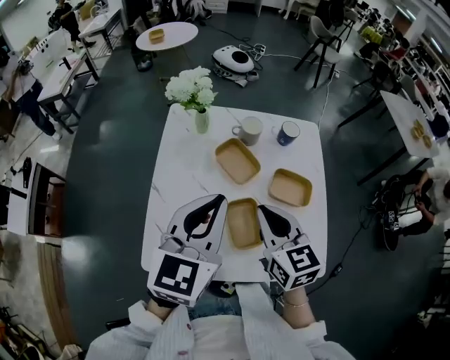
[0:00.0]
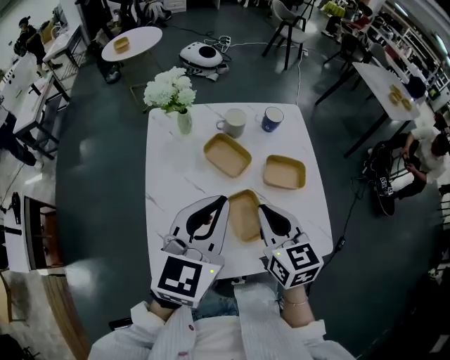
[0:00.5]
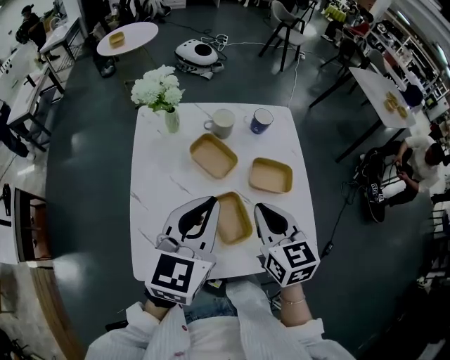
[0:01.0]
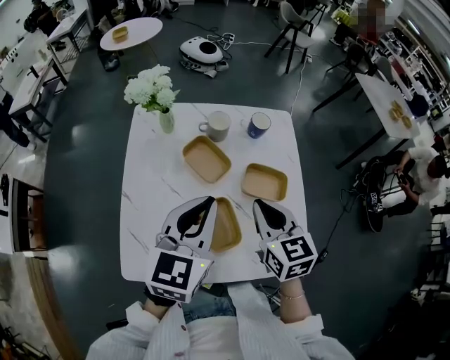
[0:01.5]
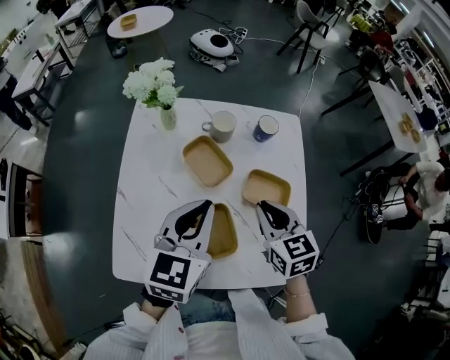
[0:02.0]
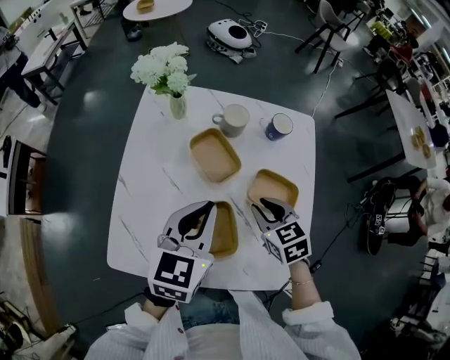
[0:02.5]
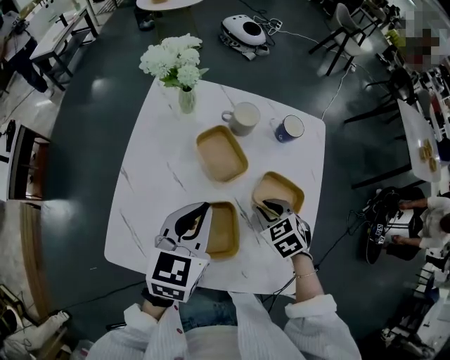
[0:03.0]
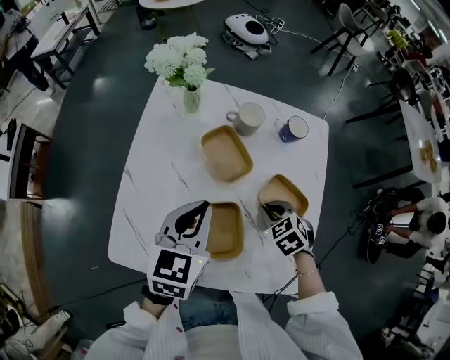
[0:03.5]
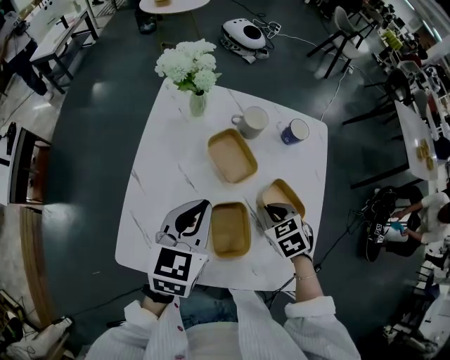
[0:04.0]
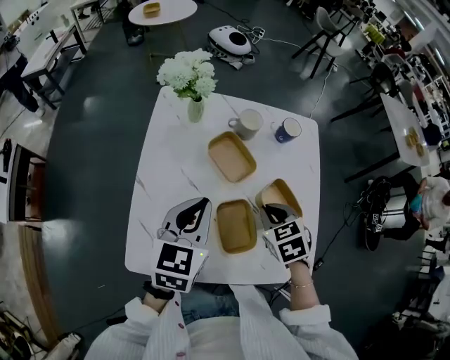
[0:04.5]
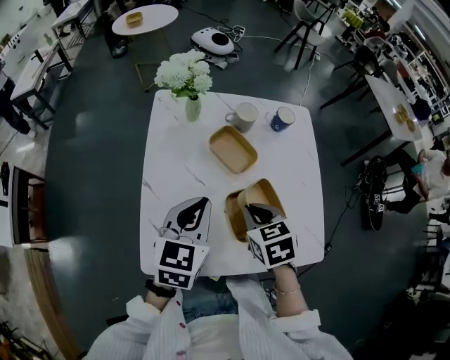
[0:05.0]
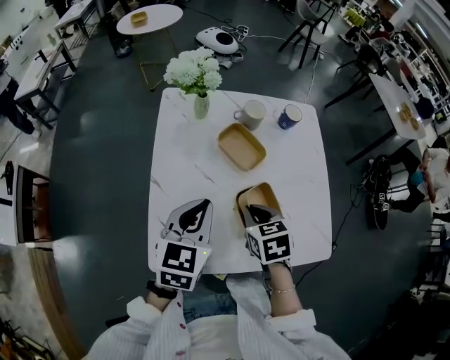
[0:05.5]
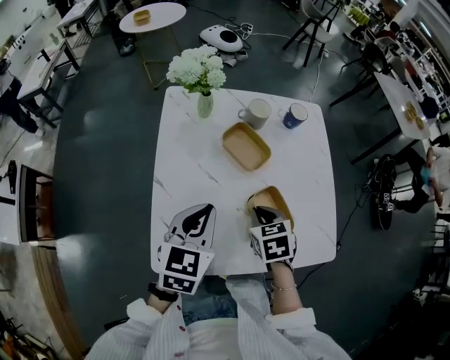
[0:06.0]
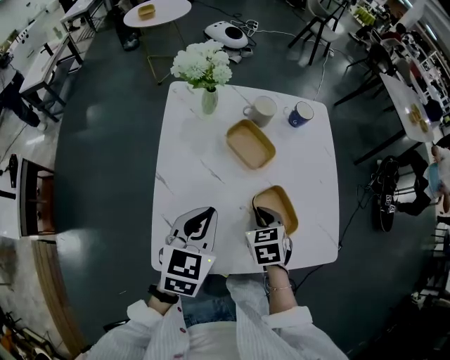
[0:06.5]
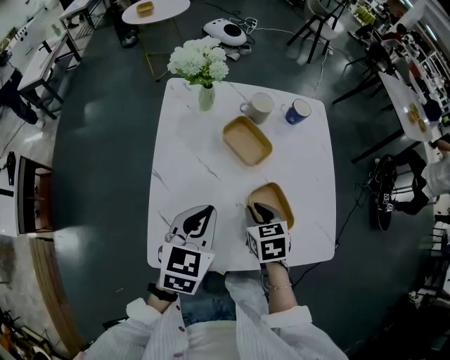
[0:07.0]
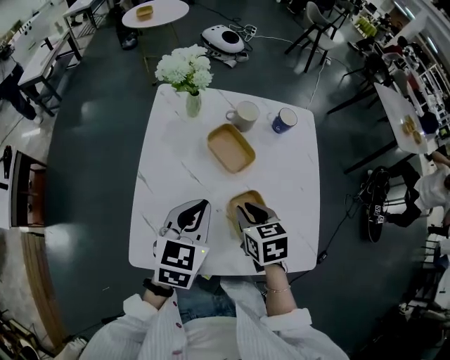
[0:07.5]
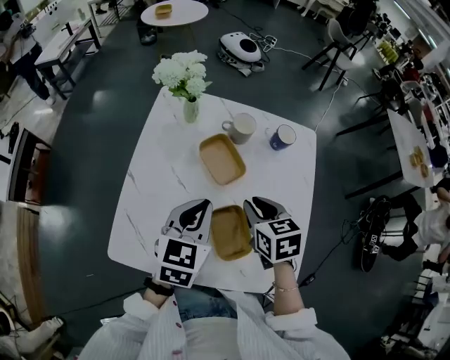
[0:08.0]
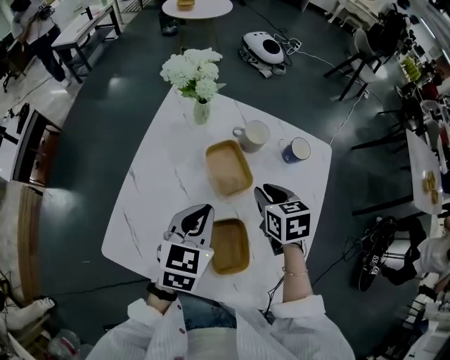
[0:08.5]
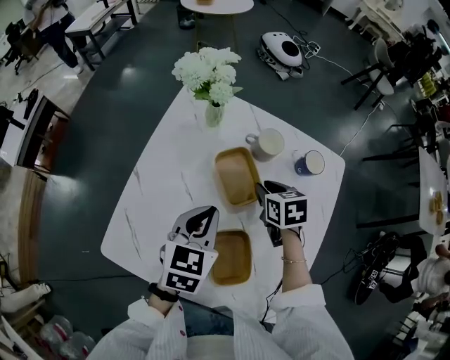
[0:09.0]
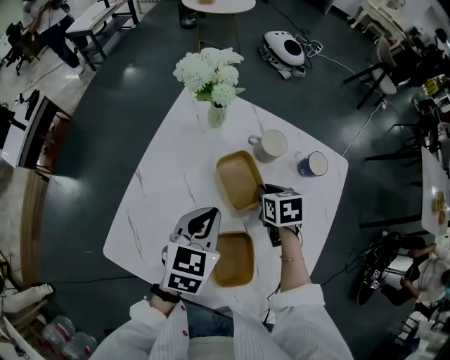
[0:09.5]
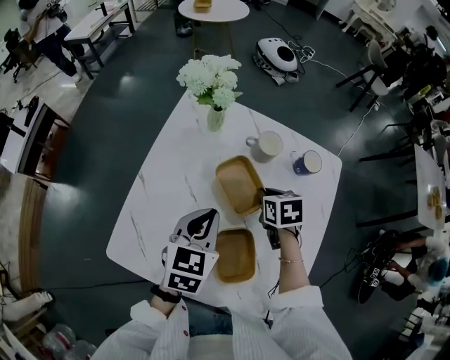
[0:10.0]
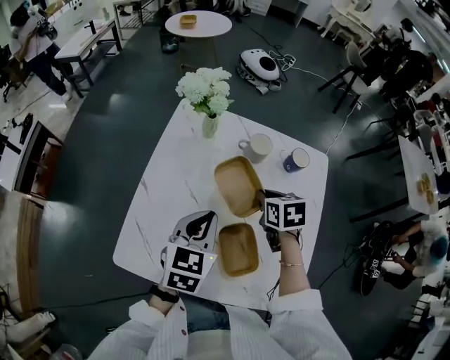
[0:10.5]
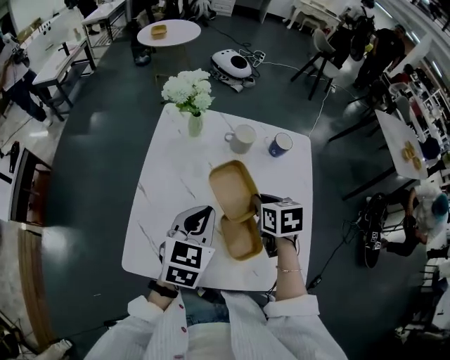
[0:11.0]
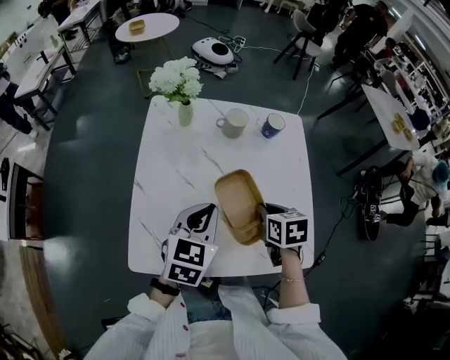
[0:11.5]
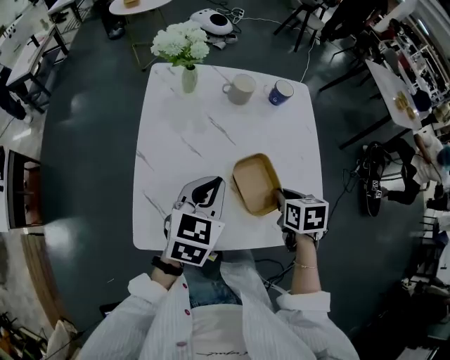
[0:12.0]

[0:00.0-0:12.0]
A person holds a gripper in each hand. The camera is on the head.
0.0 to 2.0 s: The right gripper shifts approximately 15 cm to the right, downward and forward. The left gripper shifts about 10 cm downward, to the right and forward.
2.0 to 4.0 s: The left gripper moves downward and to the left, some 10 cm, while the right gripper travels downward by some 15 cm, and swivels some 40 degrees.
4.0 to 6.0 s: The left gripper shifts approximately 10 cm to the left and backward; the right gripper heads to the left and backward, covering roughly 15 cm, and swivels some 30 degrees.
6.0 to 8.0 s: The left gripper heads to the right and forward, covering approximately 10 cm. Meanwhile the right gripper heads forward, to the right and upward, covering approximately 10 cm.
8.0 to 10.0 s: The right gripper heads forward and downward, covering roughly 15 cm. The left gripper changes place by some 5 cm.
10.0 to 12.0 s: The left gripper shifts by about 10 cm, and rotates some 20 degrees. Meanwhile the right gripper ends up roughly 25 cm from where it was, and changes its angle by about 30 degrees.

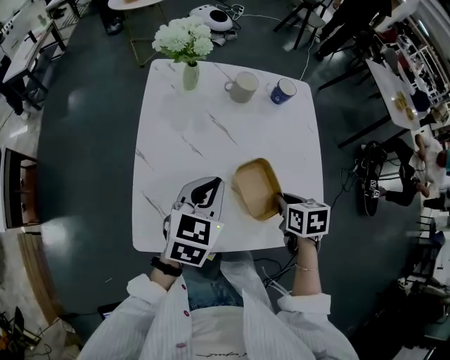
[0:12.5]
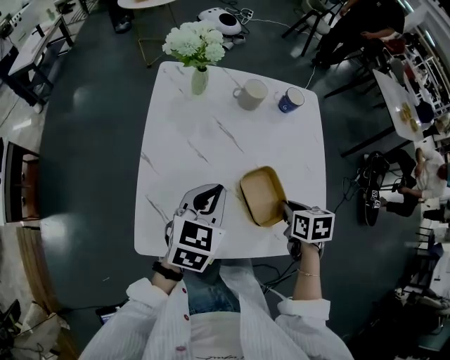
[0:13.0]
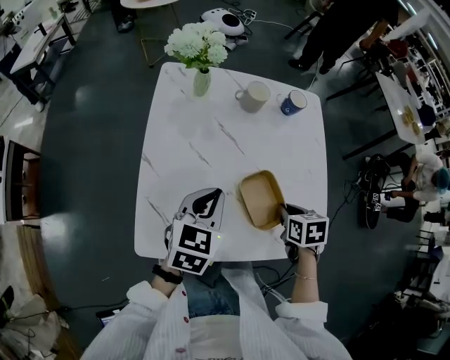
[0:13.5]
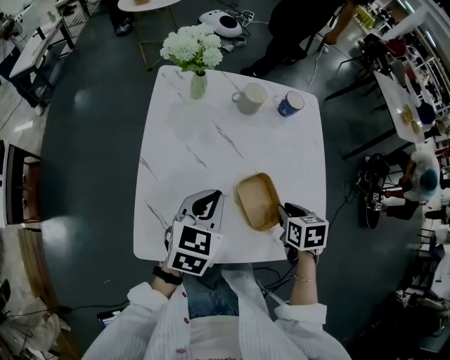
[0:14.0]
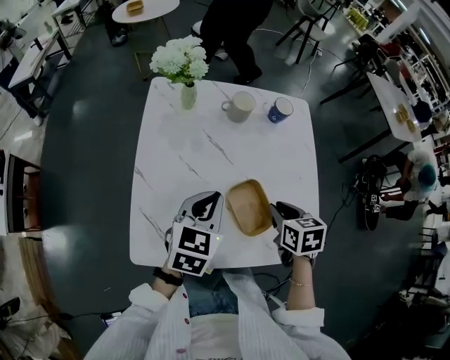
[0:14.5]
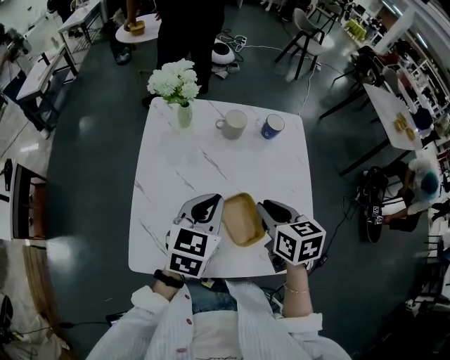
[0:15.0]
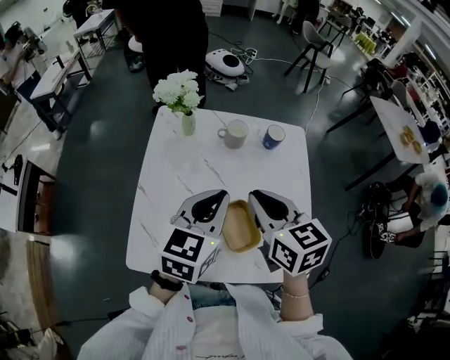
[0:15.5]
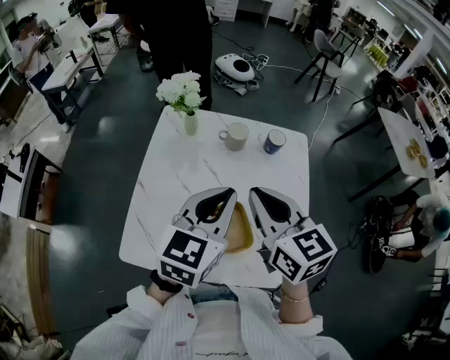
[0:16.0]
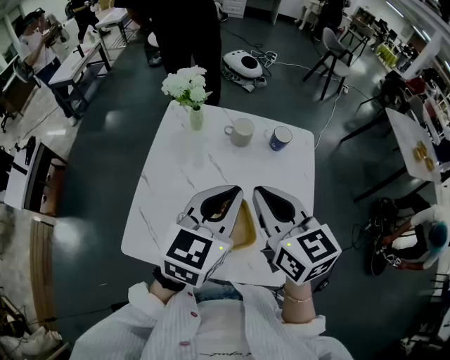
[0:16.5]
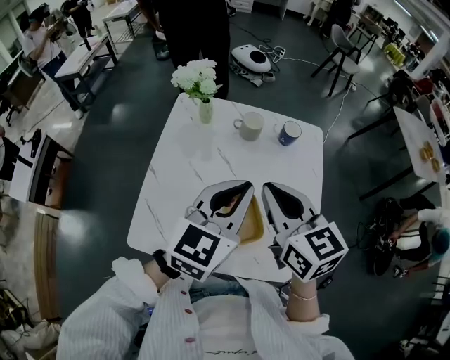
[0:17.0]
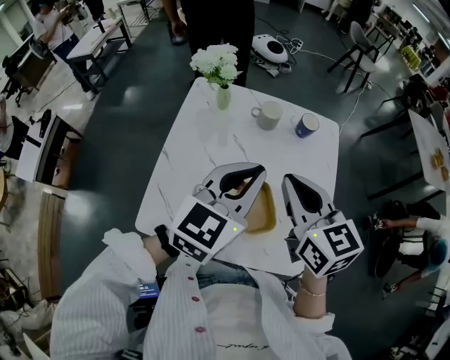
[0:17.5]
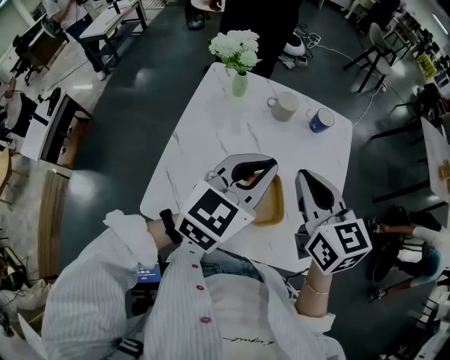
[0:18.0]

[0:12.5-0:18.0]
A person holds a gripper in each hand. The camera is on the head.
12.5 to 14.5 s: There are only small adjustments of the grippers.
14.5 to 16.0 s: The right gripper travels upward by about 20 cm, and angles its fingers upward, by roughly 40 degrees. The left gripper shifts approximately 15 cm upward and to the right.
16.0 to 18.0 s: The grippers stay close to where they were, moving slightly.

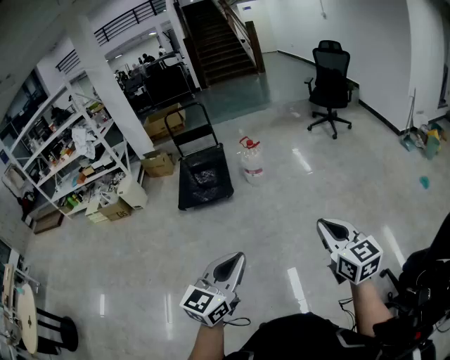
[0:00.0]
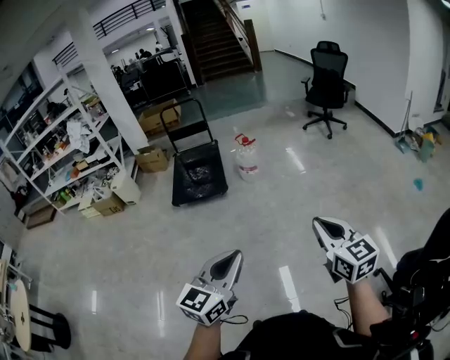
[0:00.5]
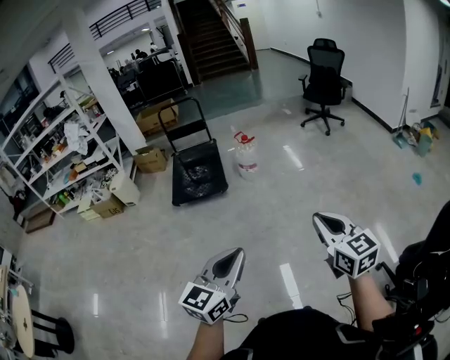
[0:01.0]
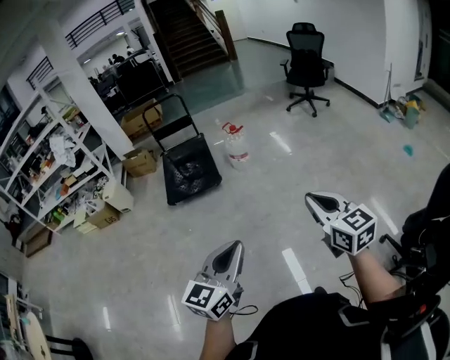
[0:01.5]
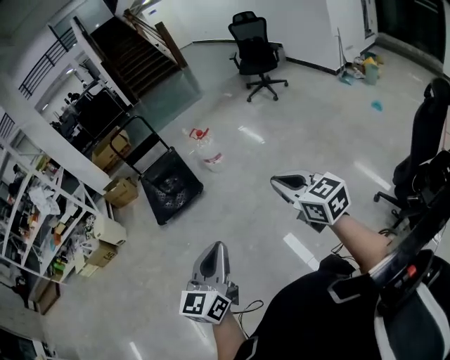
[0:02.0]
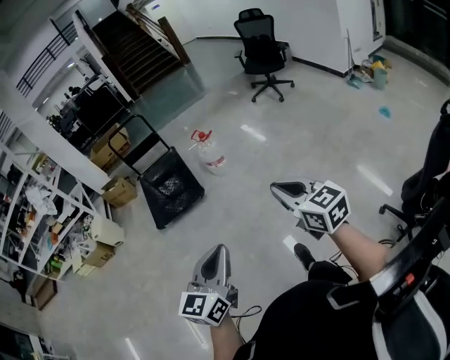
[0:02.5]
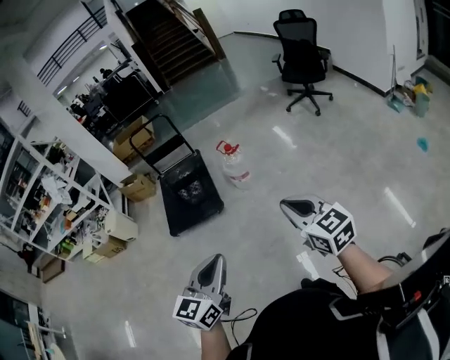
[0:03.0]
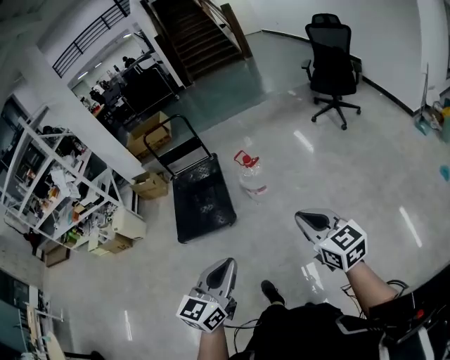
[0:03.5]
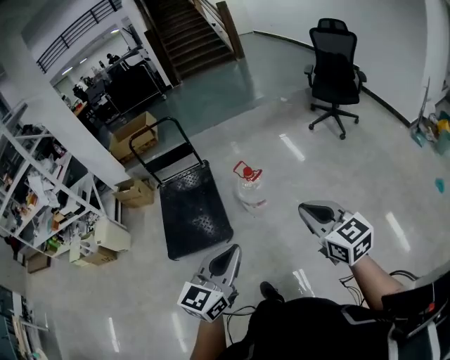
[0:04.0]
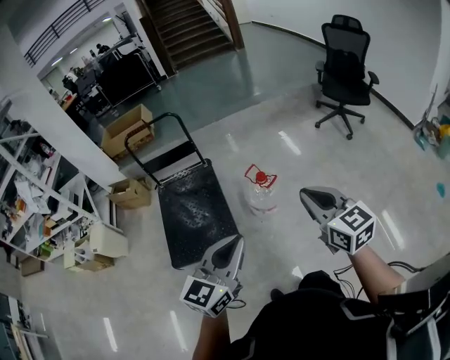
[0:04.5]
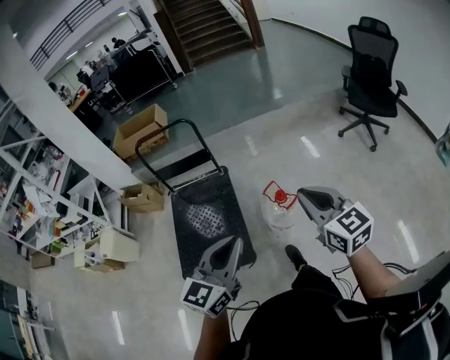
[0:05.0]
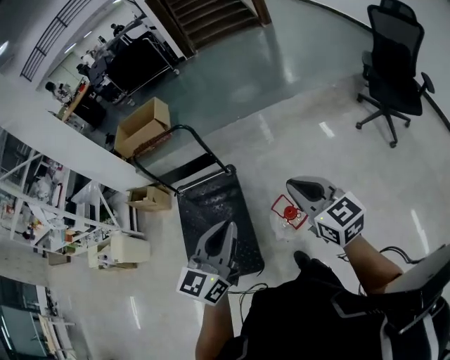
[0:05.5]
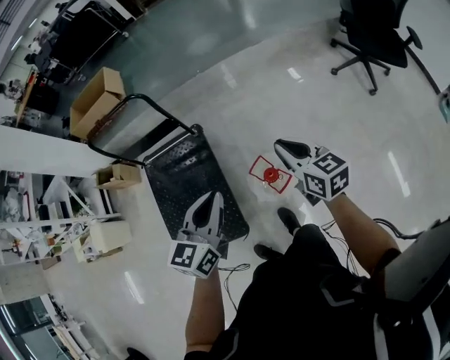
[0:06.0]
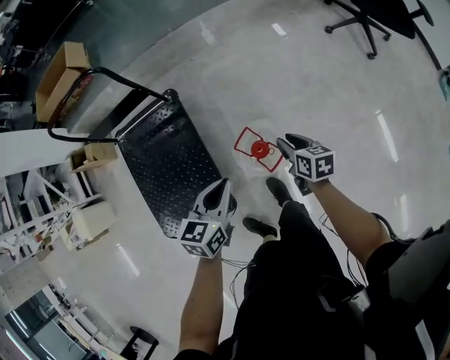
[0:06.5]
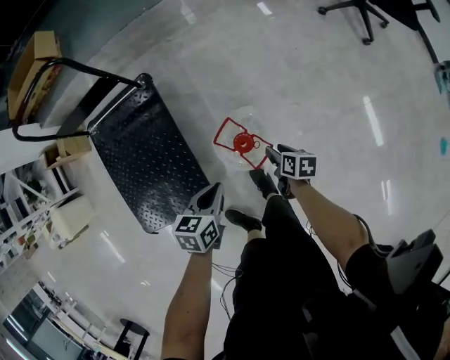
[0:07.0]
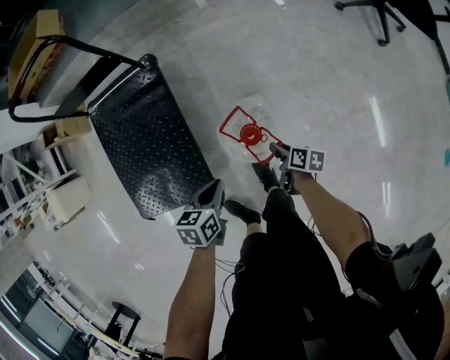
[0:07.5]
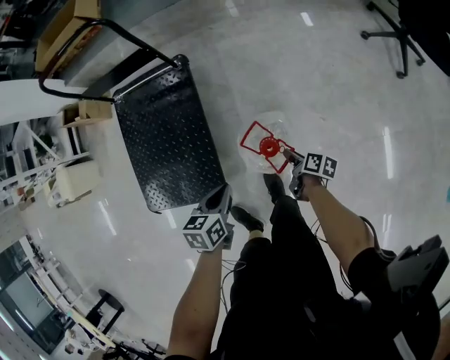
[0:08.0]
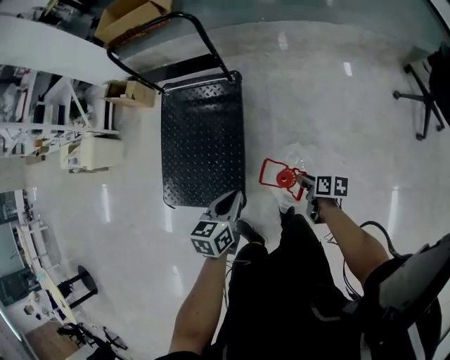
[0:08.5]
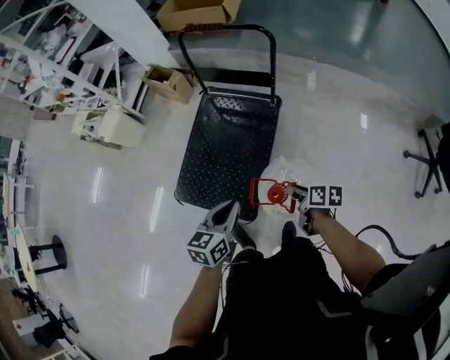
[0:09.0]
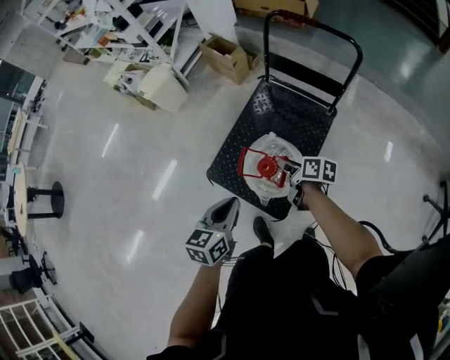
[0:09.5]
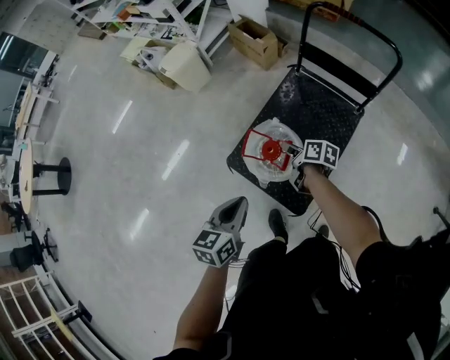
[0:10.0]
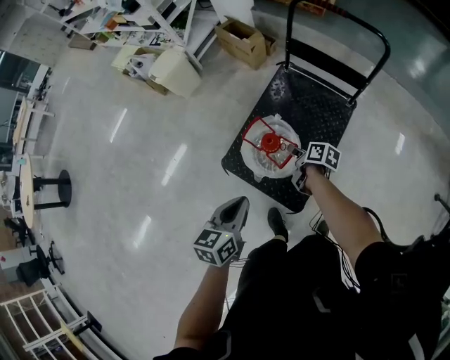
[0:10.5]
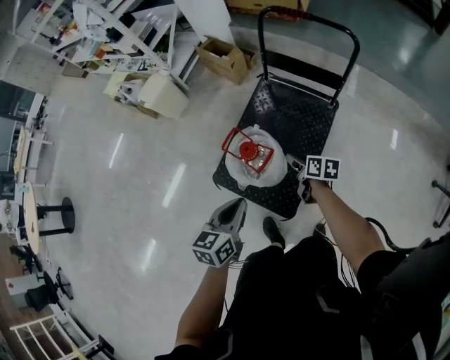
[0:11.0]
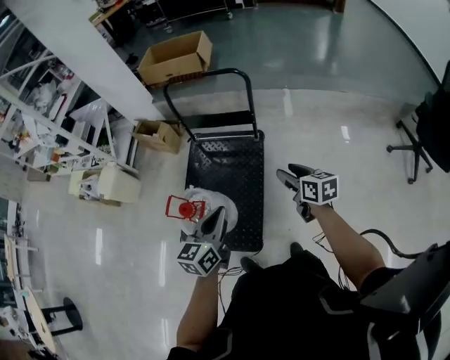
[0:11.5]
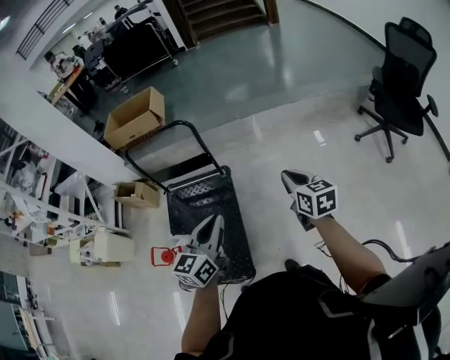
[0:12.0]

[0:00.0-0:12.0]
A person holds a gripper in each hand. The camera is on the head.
0.0 to 2.0 s: The grippers both shift to the left by roughly 10 cm.
2.0 to 4.0 s: The two grippers travel together, forward, about 60 cm.
4.0 to 6.0 s: Both grippers are carried forward, some 70 cm.
6.0 to 8.0 s: Both grippers travel together downward, about 40 cm. The left gripper angles its fingers downward, by approximately 30 degrees; the right gripper twists approximately 50 degrees clockwise, seen from behind.
8.0 to 10.0 s: The pair of grippers is taken approximately 60 cm. The right gripper rotates approximately 50 degrees; the left gripper rotates approximately 50 degrees.
10.0 to 12.0 s: Both grippers are carried roughly 60 cm. The right gripper rotates roughly 60 degrees, and opens, then closes again, while the left gripper rotates roughly 50 degrees.
